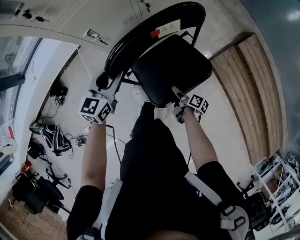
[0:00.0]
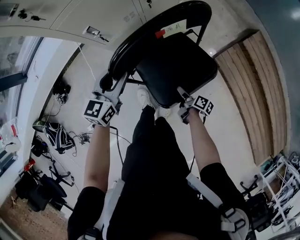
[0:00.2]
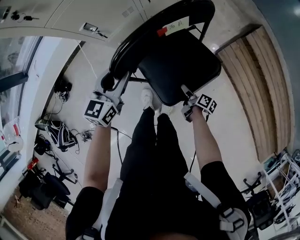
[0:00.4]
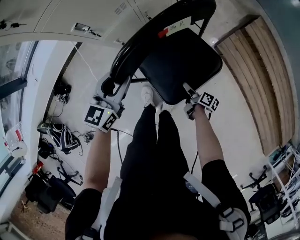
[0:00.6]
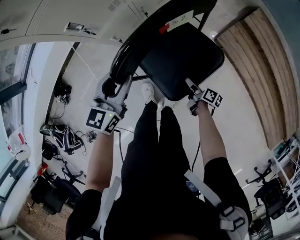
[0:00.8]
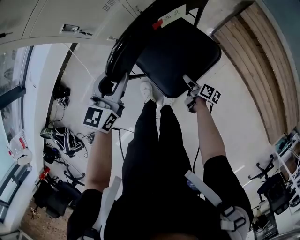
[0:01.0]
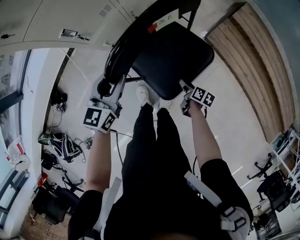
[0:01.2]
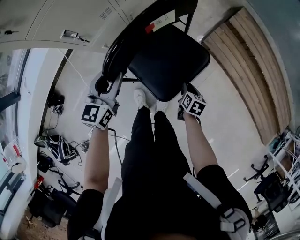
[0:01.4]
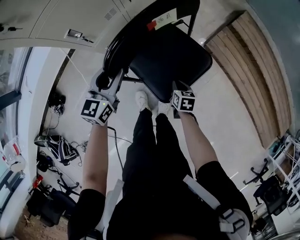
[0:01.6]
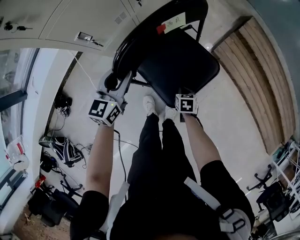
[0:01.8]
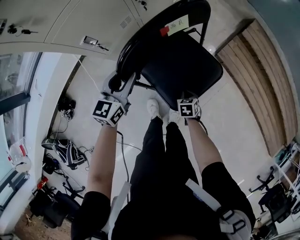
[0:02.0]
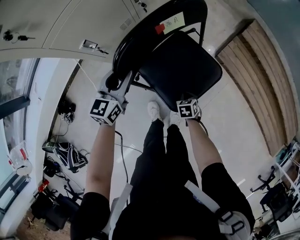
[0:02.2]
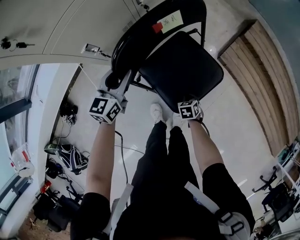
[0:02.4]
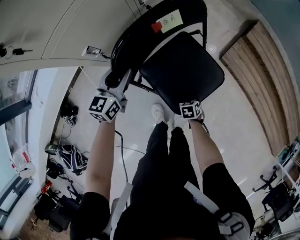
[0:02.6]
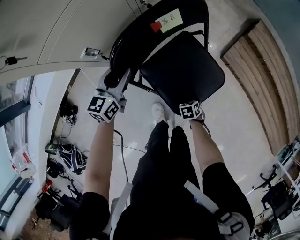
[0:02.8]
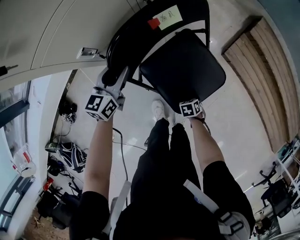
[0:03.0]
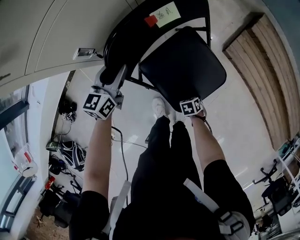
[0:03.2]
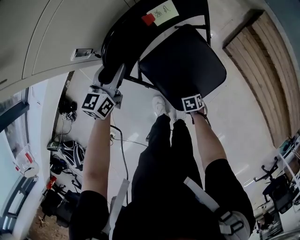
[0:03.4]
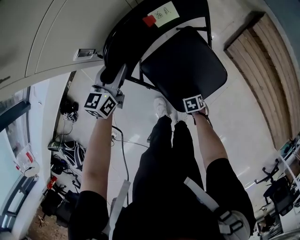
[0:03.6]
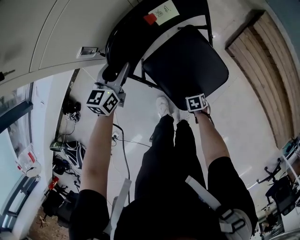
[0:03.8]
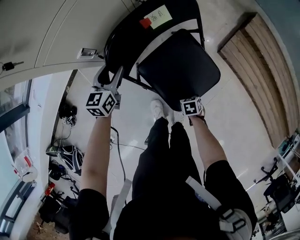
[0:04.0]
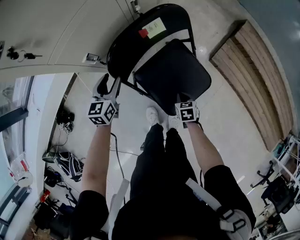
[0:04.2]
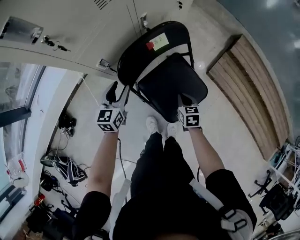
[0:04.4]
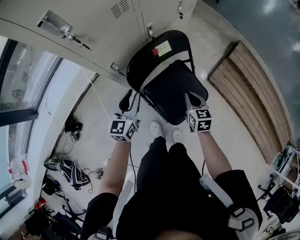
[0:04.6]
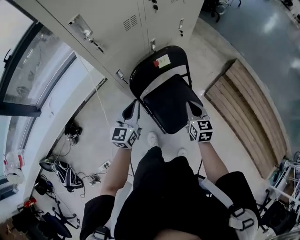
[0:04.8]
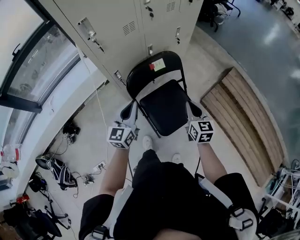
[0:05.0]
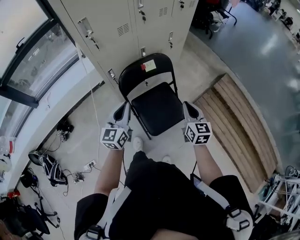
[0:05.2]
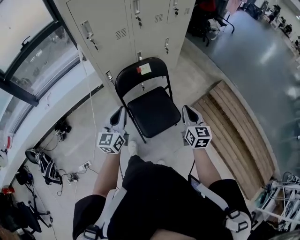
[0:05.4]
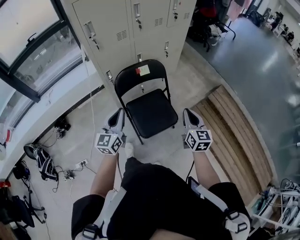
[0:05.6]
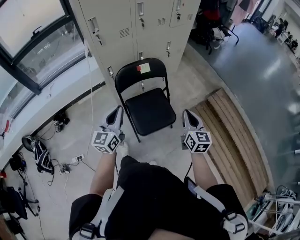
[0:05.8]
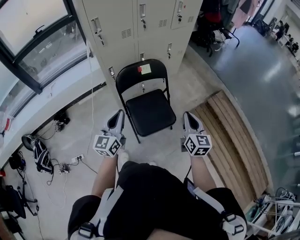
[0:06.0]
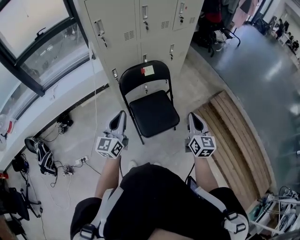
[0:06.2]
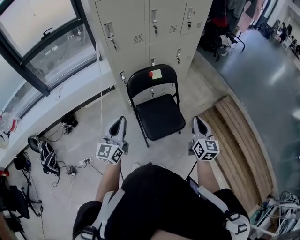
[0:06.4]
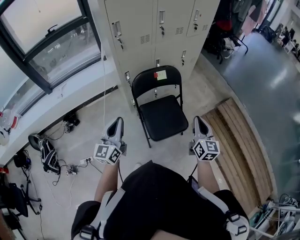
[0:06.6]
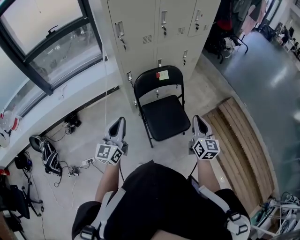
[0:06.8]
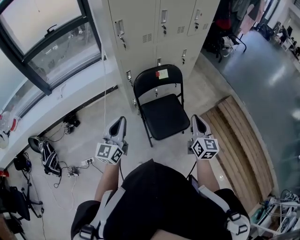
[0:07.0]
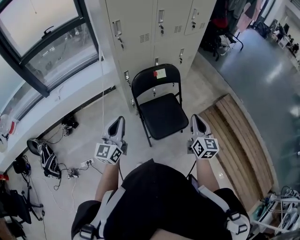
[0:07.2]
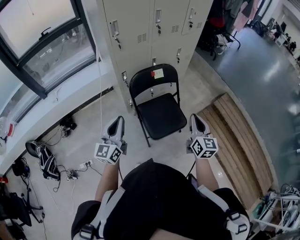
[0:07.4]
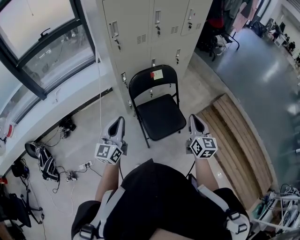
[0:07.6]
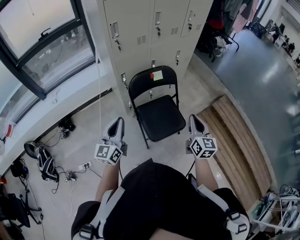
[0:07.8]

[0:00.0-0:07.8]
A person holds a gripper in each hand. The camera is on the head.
0.0 to 1.6 s: The right gripper reaches about 10 cm to the right, then returns, rotates around the line of its fingers by roughly 40 degrees, counterclockwise from behind, and closes up.
1.6 to 3.2 s: The left gripper changes place by approximately 15 cm; the right gripper is displaced downward by approximately 15 cm, and rotates roughly 40 degrees.
3.2 to 4.6 s: The left gripper goes about 15 cm upward. Meanwhile the right gripper goes roughly 35 cm upward, and points its fingers roughly 50 degrees further upward.
4.6 to 6.2 s: The left gripper travels backward, upward and to the right by about 30 cm, turns by some 20 degrees, and closes. The right gripper is displaced upward, to the right and backward by roughly 35 cm, and turns by roughly 30 degrees.
6.2 to 7.8 s: Both grippers move to the left, about 10 cm.

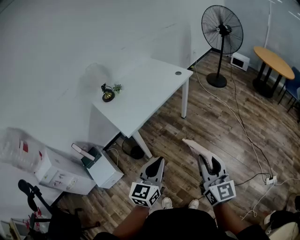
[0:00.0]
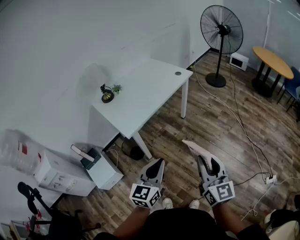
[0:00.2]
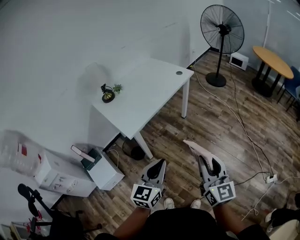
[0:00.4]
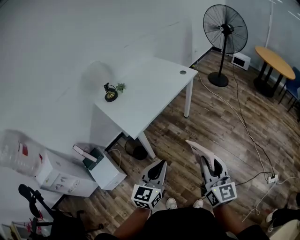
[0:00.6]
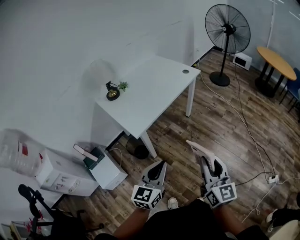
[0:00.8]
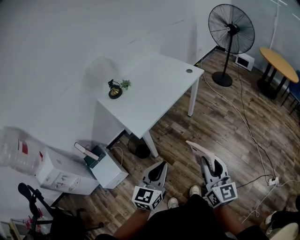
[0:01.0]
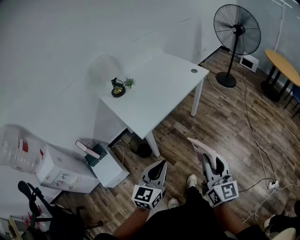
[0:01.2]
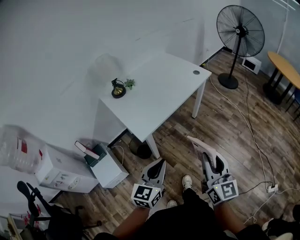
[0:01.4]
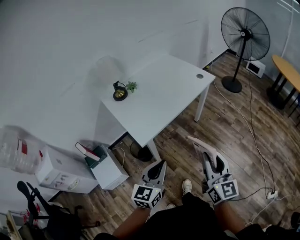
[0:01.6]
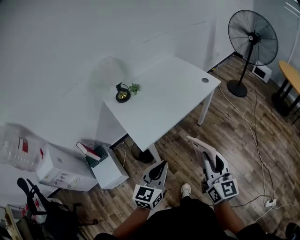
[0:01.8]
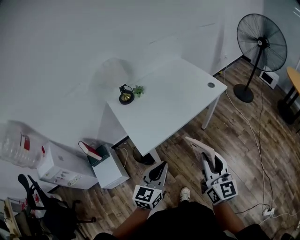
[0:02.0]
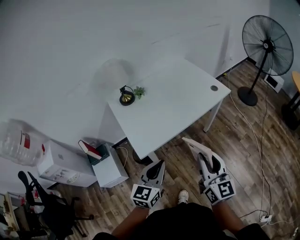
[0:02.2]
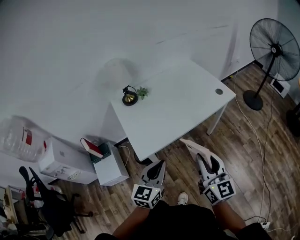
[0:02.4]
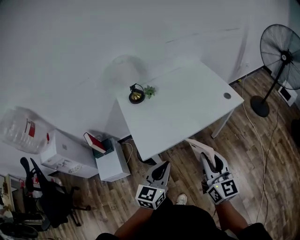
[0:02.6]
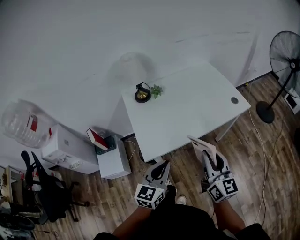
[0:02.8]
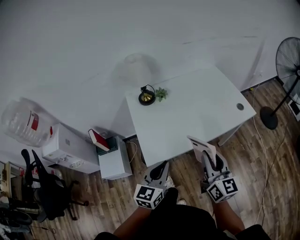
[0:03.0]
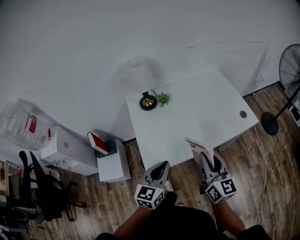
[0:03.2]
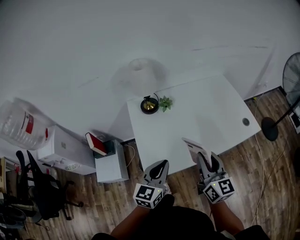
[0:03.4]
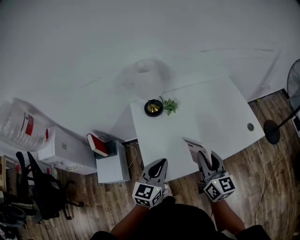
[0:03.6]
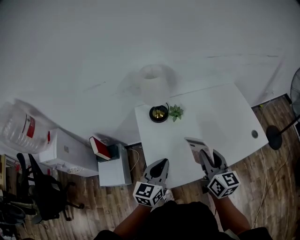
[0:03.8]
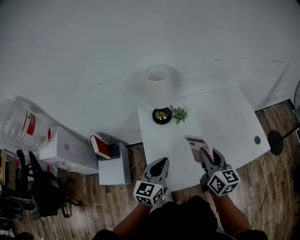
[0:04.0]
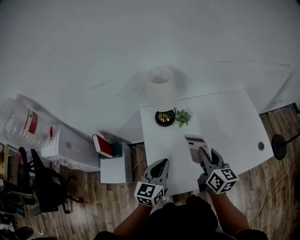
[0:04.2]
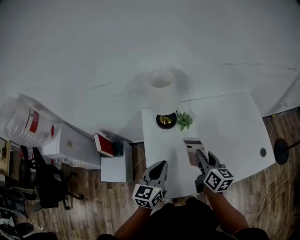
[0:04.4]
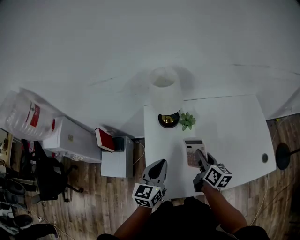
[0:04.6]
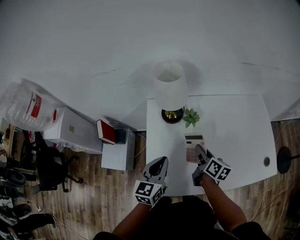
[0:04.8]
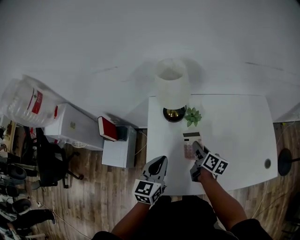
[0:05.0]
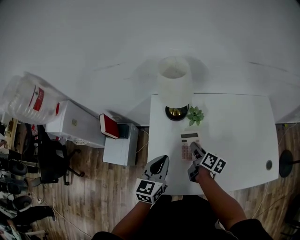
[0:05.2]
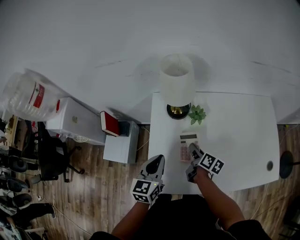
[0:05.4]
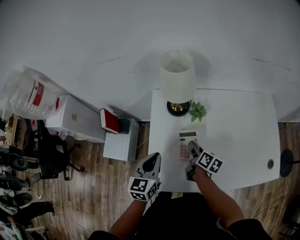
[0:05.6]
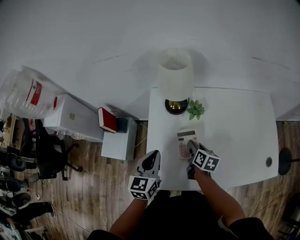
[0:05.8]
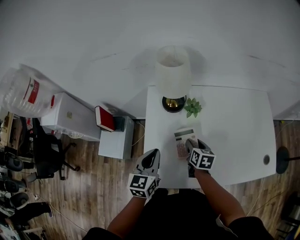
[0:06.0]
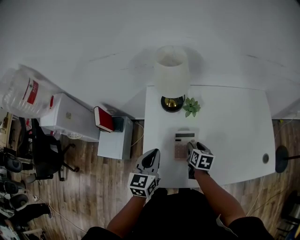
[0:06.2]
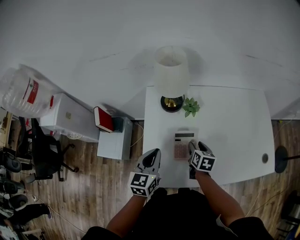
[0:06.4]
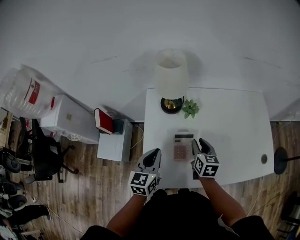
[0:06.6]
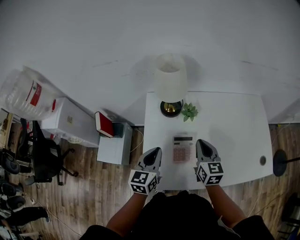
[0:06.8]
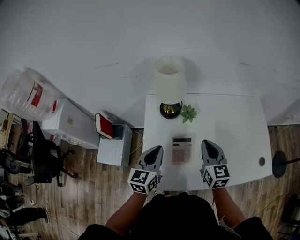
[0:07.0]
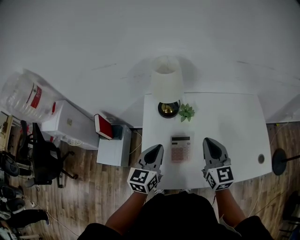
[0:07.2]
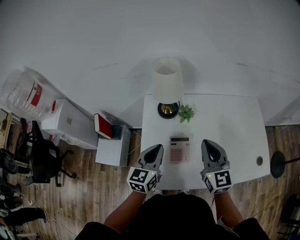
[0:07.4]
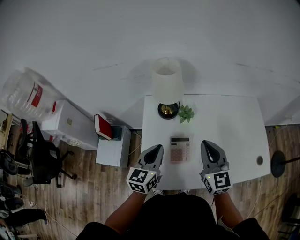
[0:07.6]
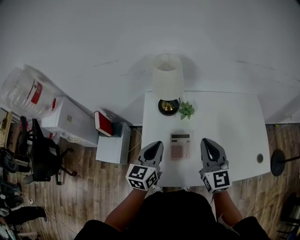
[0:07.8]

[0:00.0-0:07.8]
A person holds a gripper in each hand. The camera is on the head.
0.0 to 1.6 s: The right gripper shifts approximately 20 cm forward and to the left. Meanwhile the left gripper is displaced to the left and forward by some 15 cm.
1.6 to 3.2 s: The left gripper moves about 25 cm, and rotates approximately 20 degrees. Meanwhile the right gripper moves some 35 cm, and turns by roughly 30 degrees.
3.2 to 4.6 s: The right gripper travels forward and downward by some 30 cm, and changes its angle by about 40 degrees, while the left gripper heads forward, covering roughly 20 cm.
4.6 to 6.2 s: The right gripper goes about 15 cm downward, turns by about 30 degrees, and opens. The left gripper heads downward, covering approximately 5 cm.
6.2 to 7.8 s: The right gripper goes approximately 25 cm upward, tips its fingers upward by roughly 40 degrees, and closes its fingers. Meanwhile the left gripper moves upward, roughly 5 cm.

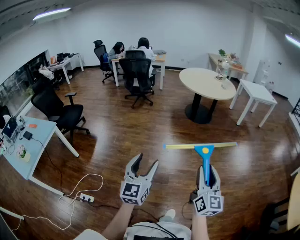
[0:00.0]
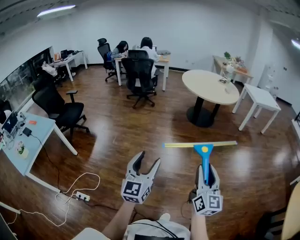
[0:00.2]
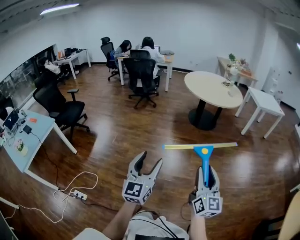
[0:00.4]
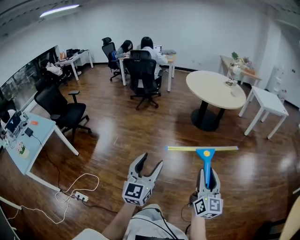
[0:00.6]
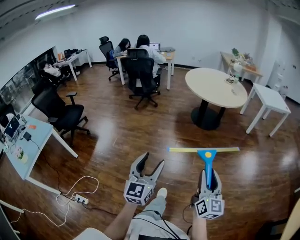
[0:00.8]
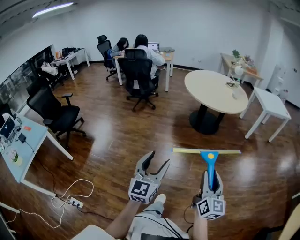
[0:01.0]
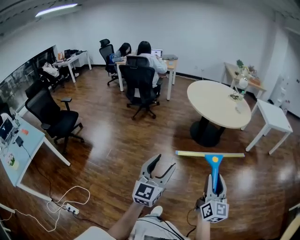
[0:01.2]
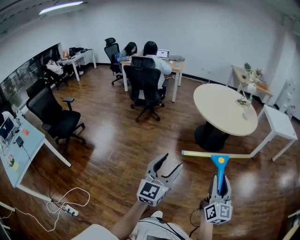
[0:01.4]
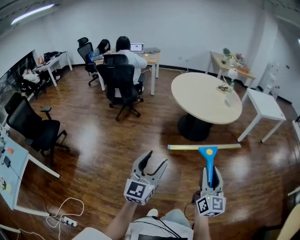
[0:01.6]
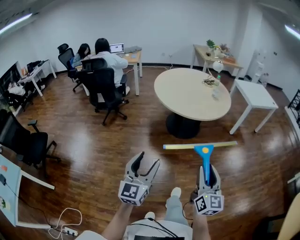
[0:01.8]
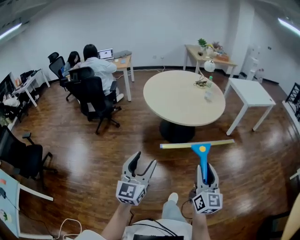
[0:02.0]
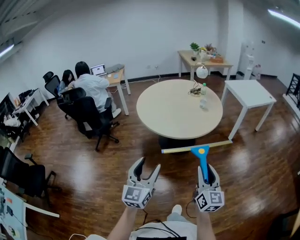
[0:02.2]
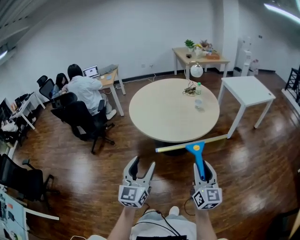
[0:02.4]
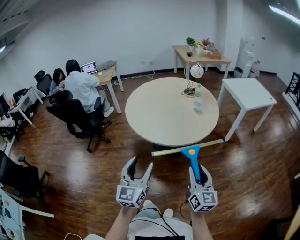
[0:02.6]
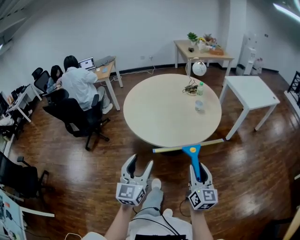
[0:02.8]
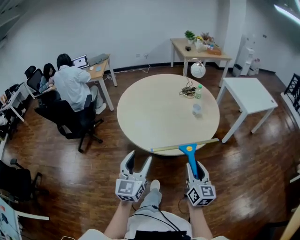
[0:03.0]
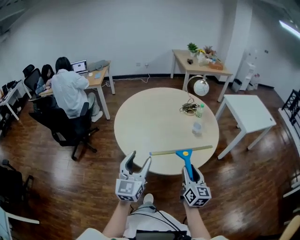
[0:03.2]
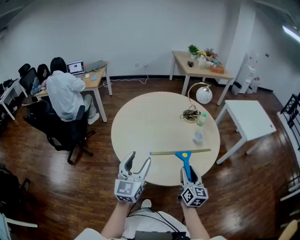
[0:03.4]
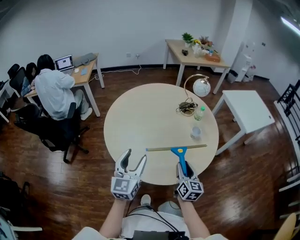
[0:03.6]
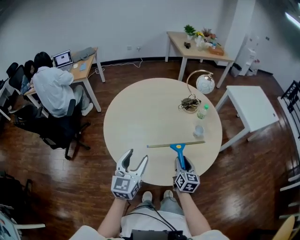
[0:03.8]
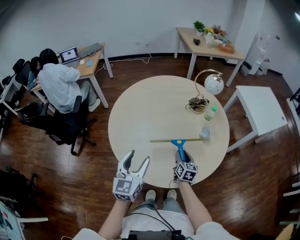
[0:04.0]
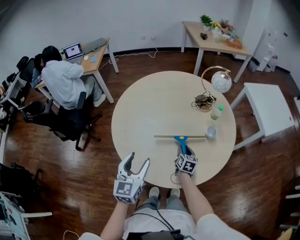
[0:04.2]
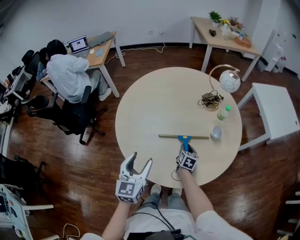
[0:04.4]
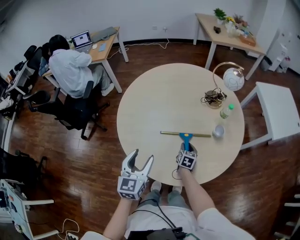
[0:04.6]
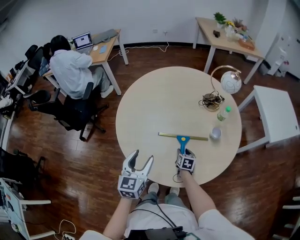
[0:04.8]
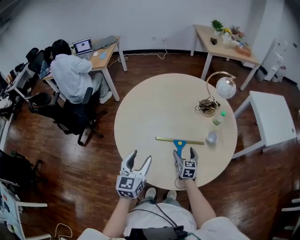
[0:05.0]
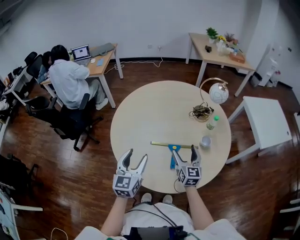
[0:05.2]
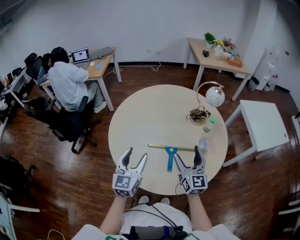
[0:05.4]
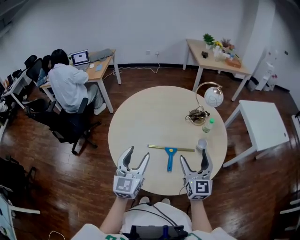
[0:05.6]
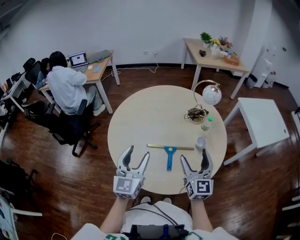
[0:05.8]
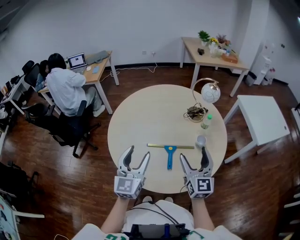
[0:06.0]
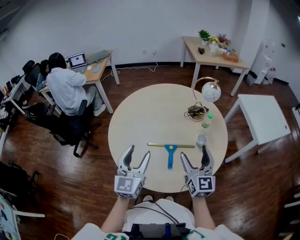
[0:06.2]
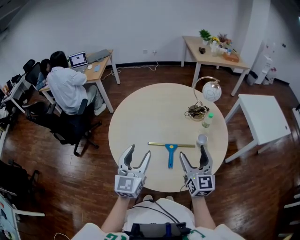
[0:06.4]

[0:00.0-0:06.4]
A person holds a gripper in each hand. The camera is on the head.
0.0 to 1.6 s: The two grippers travel together, forward, about 60 cm.
1.6 to 3.2 s: The pair of grippers is taken forward, approximately 70 cm.
3.2 to 4.8 s: The right gripper heads downward and forward, covering some 40 cm, and angles its fingers downward, by approximately 40 degrees, while the left gripper shifts some 20 cm forward and downward, and rotates approximately 20 degrees.
4.8 to 6.4 s: The left gripper shifts approximately 10 cm upward. The right gripper is displaced upward by roughly 40 cm, points its fingers roughly 50 degrees further upward, and opens.

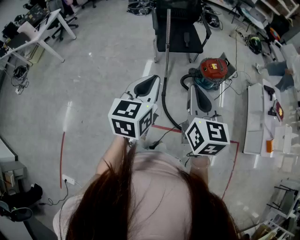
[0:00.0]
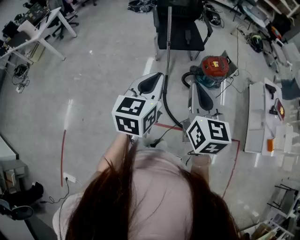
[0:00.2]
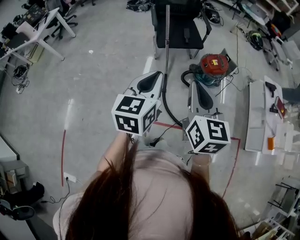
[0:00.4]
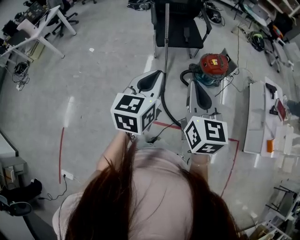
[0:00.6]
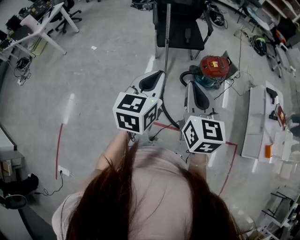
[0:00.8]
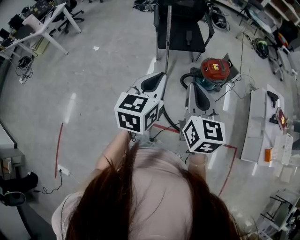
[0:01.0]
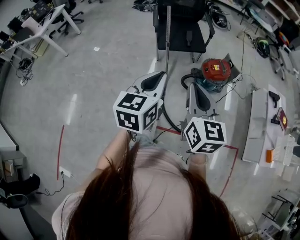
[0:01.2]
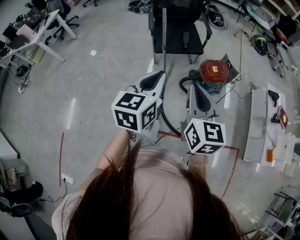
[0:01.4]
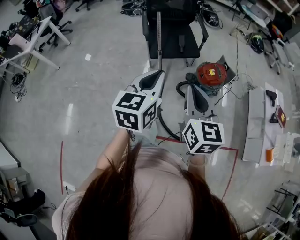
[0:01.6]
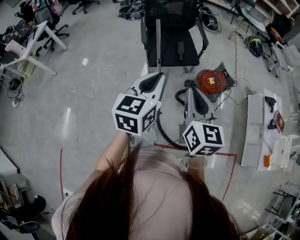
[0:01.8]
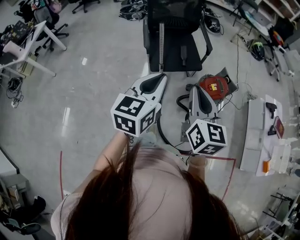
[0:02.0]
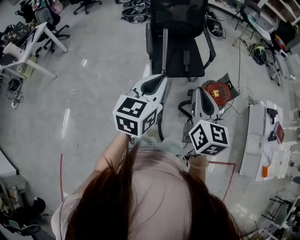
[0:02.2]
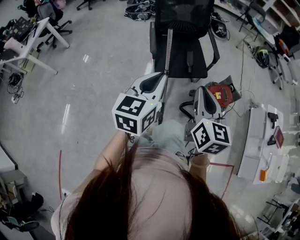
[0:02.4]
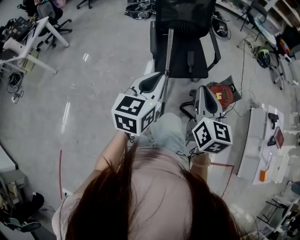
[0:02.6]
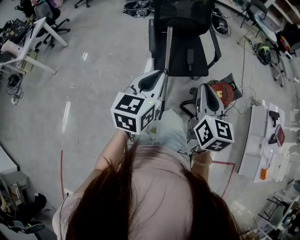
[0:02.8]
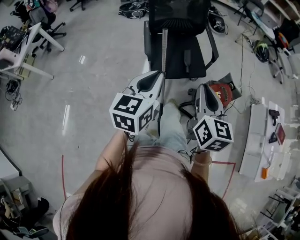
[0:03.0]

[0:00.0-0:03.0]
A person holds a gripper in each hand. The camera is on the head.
0.0 to 1.6 s: The two grippers go roughly 20 cm forward.
1.6 to 3.0 s: The right gripper travels forward by roughly 30 cm, while the left gripper shifts some 30 cm forward and to the left.
